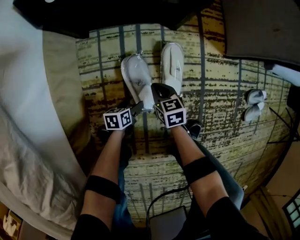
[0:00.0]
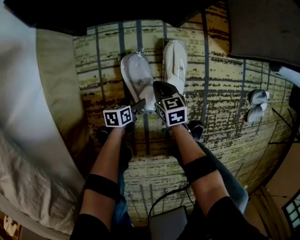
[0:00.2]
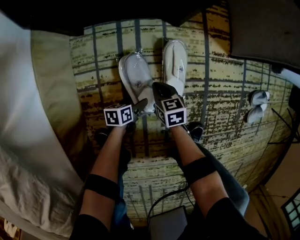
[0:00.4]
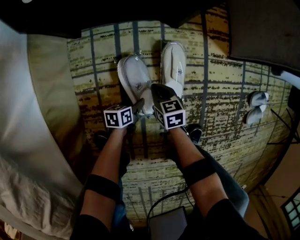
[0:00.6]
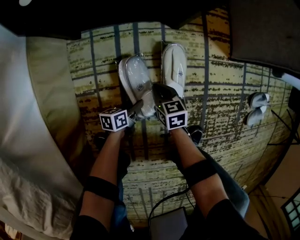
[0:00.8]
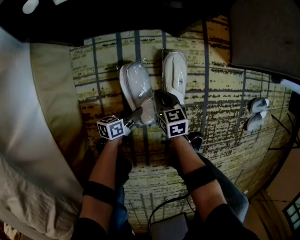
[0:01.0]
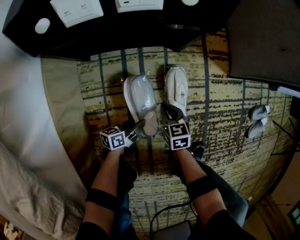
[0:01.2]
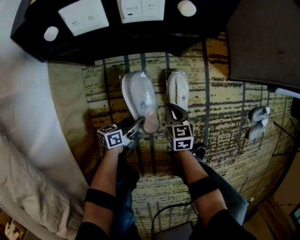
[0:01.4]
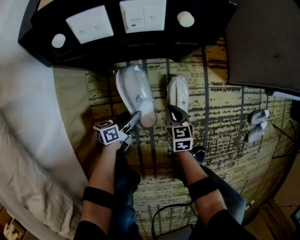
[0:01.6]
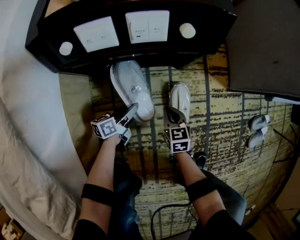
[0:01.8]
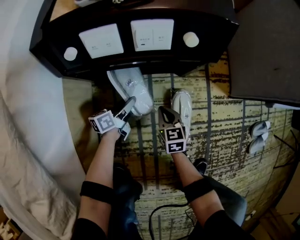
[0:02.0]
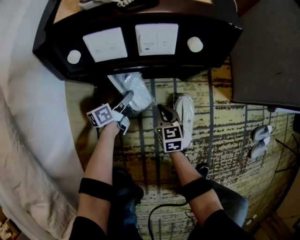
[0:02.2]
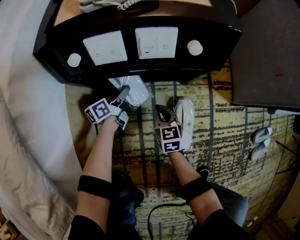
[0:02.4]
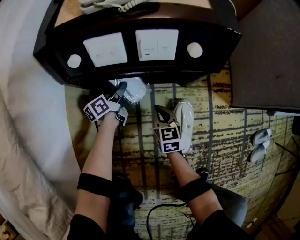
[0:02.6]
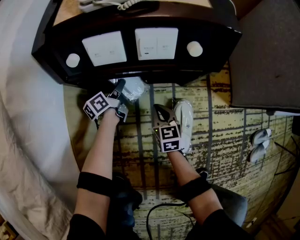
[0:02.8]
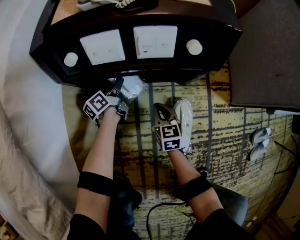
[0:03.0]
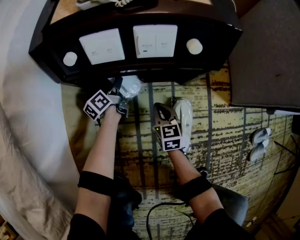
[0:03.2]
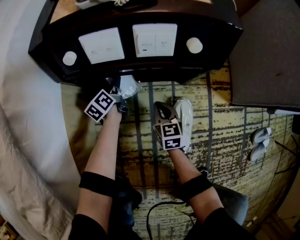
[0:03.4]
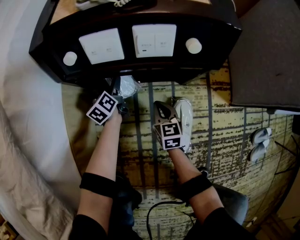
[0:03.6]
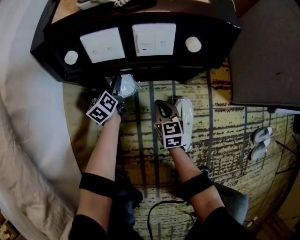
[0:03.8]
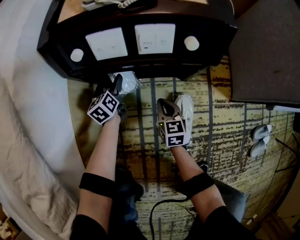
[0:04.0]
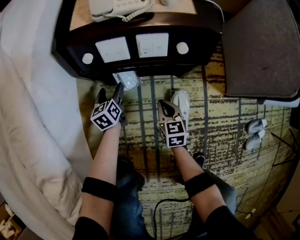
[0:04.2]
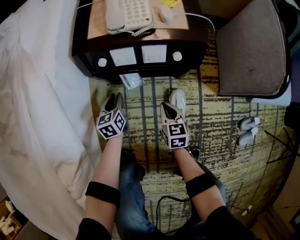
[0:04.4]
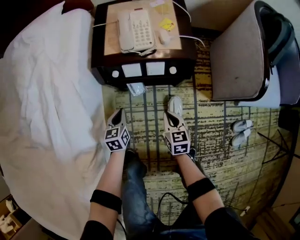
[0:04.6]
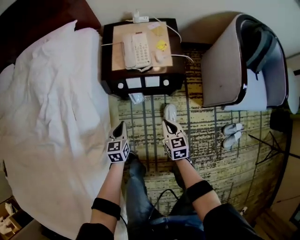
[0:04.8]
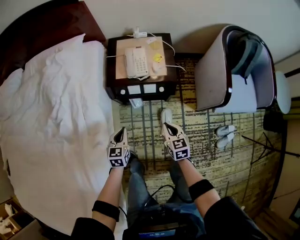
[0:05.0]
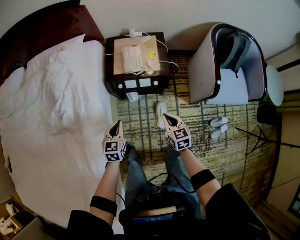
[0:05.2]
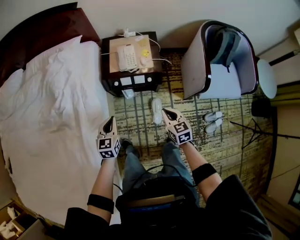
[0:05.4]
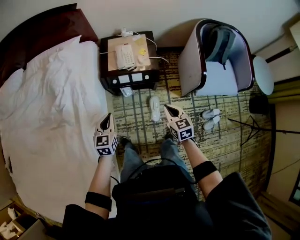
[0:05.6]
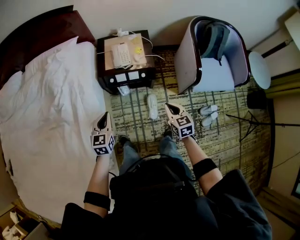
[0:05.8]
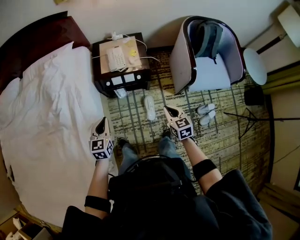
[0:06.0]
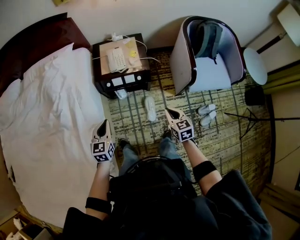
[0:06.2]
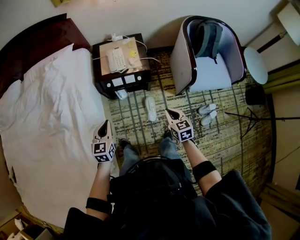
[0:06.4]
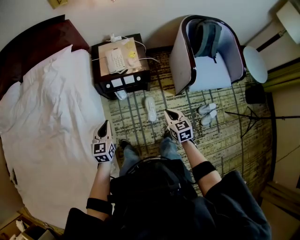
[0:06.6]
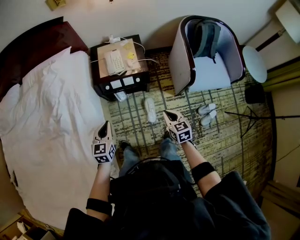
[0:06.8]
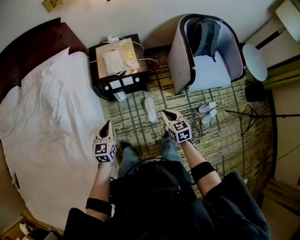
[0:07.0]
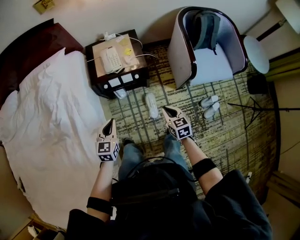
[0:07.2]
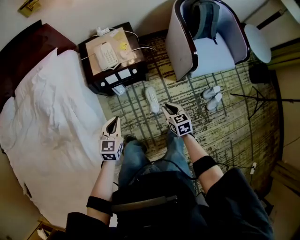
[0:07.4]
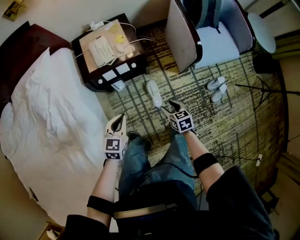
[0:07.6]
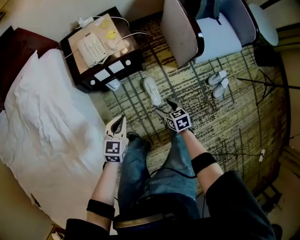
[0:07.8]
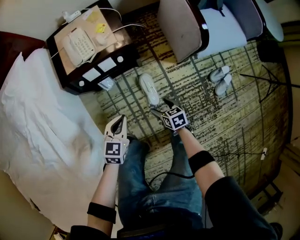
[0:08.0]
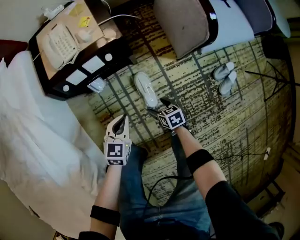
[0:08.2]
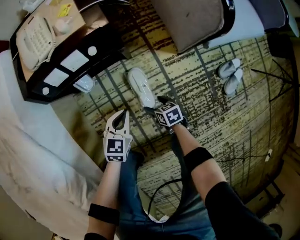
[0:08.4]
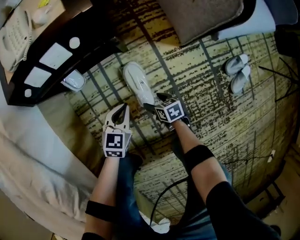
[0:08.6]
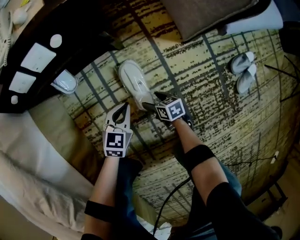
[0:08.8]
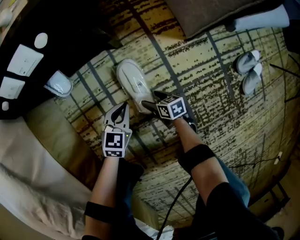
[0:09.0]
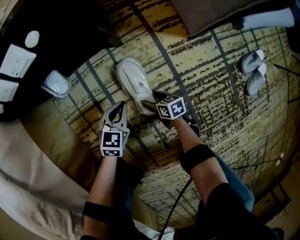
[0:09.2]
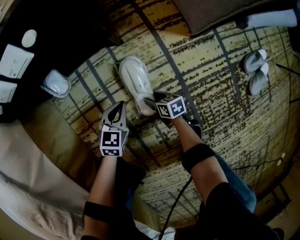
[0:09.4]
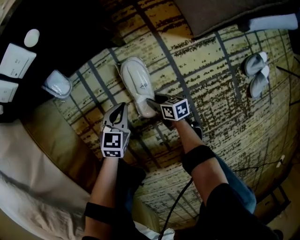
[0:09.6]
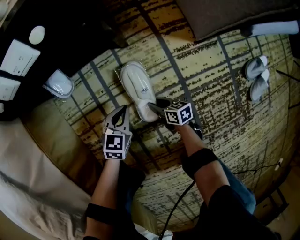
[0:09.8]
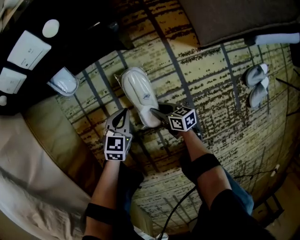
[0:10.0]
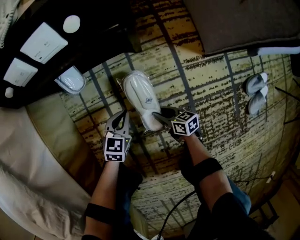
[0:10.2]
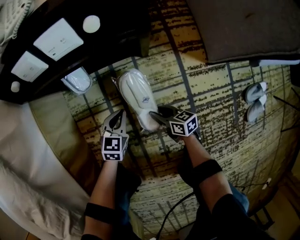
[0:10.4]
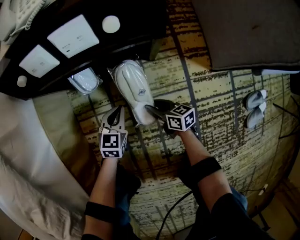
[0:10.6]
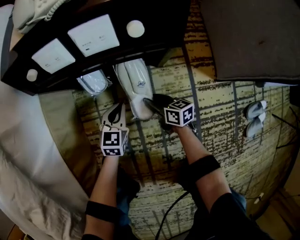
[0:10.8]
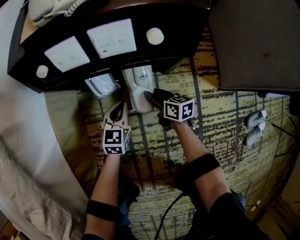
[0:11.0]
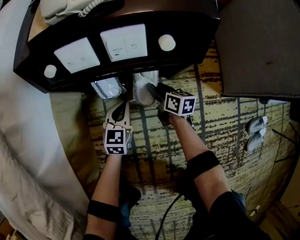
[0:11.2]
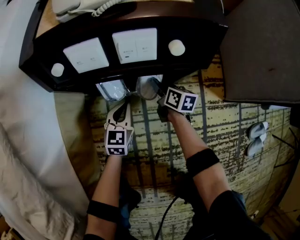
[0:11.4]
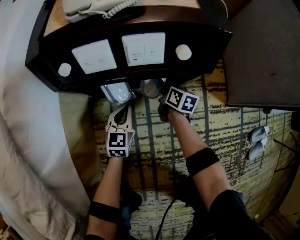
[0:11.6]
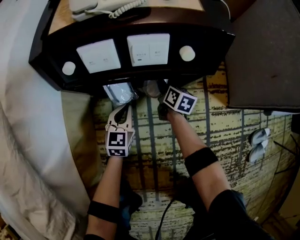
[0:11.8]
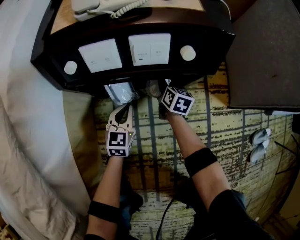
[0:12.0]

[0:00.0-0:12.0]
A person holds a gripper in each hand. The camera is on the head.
0:00.0 to 0:01.6: The left gripper heads forward and upward, covering about 15 cm, changes its angle by approximately 30 degrees, and closes; the right gripper heads forward, covering approximately 5 cm.
0:01.6 to 0:03.0: The right gripper travels forward and to the left by roughly 15 cm. Meanwhile the left gripper travels forward and to the left by some 25 cm, and turns by some 30 degrees.
0:03.0 to 0:04.4: The right gripper shifts roughly 20 cm upward. The left gripper heads upward and backward, covering approximately 20 cm, swivels approximately 50 degrees, and opens and closes again.
0:04.4 to 0:06.0: The two grippers go some 50 cm upward. The left gripper rotates about 20 degrees.
0:06.0 to 0:07.6: The left gripper travels downward and to the right by about 15 cm, and changes its angle by roughly 30 degrees. Meanwhile the right gripper moves downward, about 20 cm, and opens up.
0:07.6 to 0:09.0: Both grippers move downward, about 60 cm. The right gripper rotates some 30 degrees.
0:09.0 to 0:10.4: The right gripper moves to the left and upward, some 10 cm, and closes its fingers, while the left gripper goes roughly 10 cm to the left.
0:10.4 to 0:12.0: The left gripper moves forward and to the left, approximately 15 cm, and rotates roughly 20 degrees, while the right gripper moves forward, about 30 cm, and changes its angle by some 30 degrees.

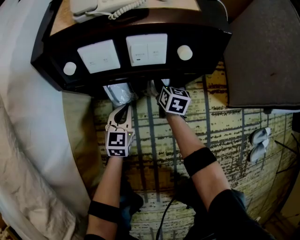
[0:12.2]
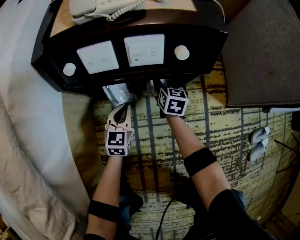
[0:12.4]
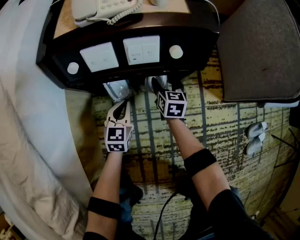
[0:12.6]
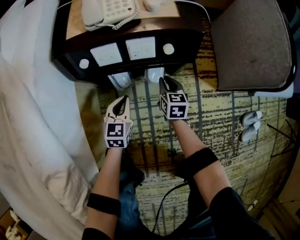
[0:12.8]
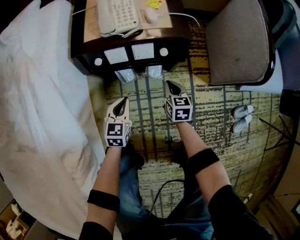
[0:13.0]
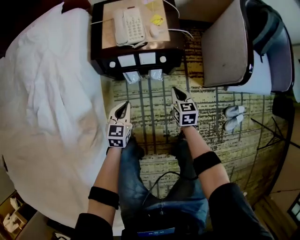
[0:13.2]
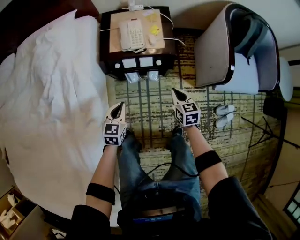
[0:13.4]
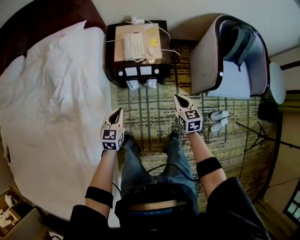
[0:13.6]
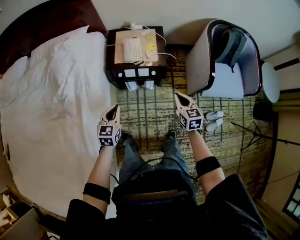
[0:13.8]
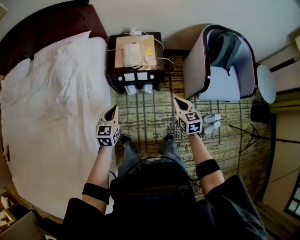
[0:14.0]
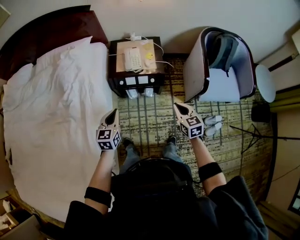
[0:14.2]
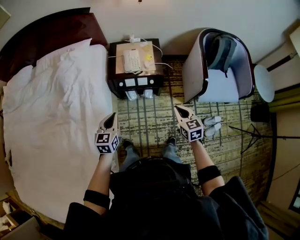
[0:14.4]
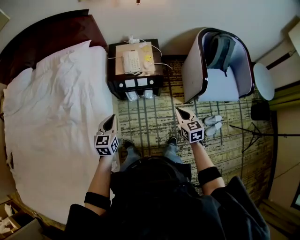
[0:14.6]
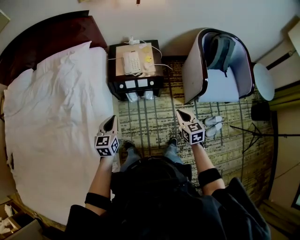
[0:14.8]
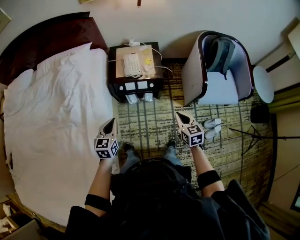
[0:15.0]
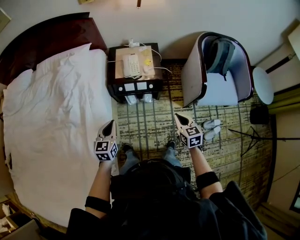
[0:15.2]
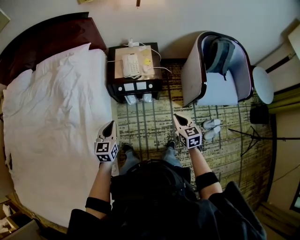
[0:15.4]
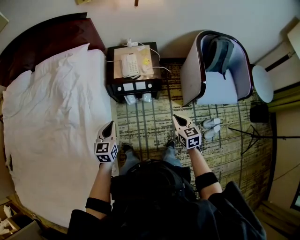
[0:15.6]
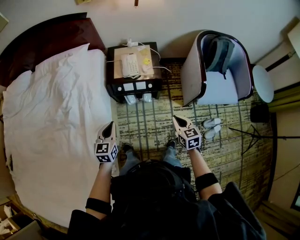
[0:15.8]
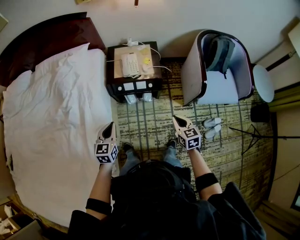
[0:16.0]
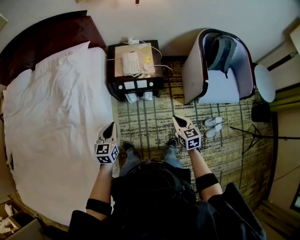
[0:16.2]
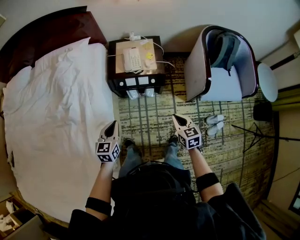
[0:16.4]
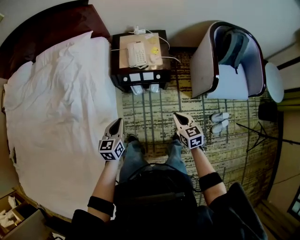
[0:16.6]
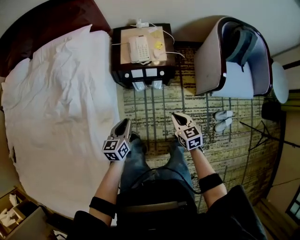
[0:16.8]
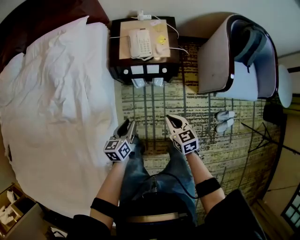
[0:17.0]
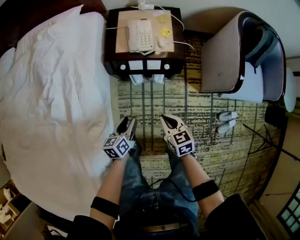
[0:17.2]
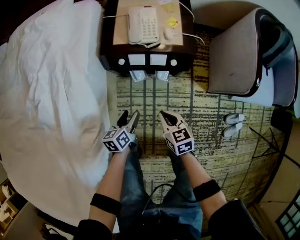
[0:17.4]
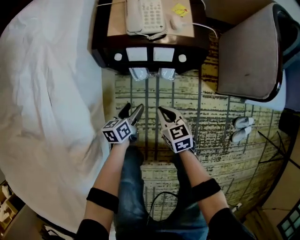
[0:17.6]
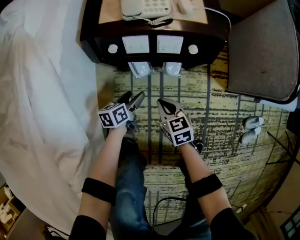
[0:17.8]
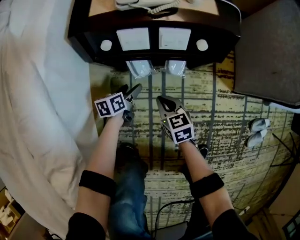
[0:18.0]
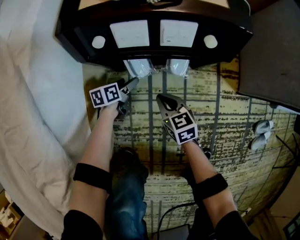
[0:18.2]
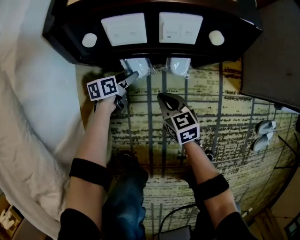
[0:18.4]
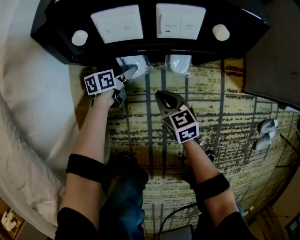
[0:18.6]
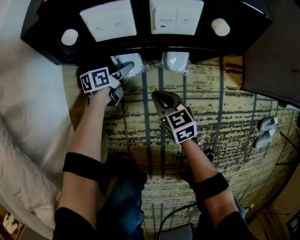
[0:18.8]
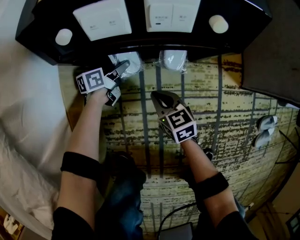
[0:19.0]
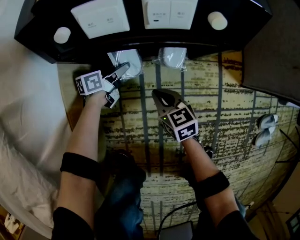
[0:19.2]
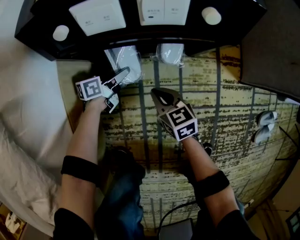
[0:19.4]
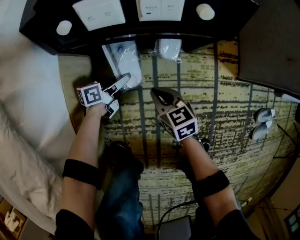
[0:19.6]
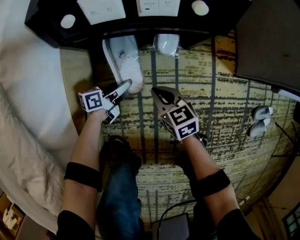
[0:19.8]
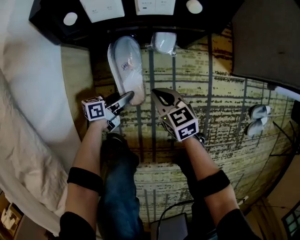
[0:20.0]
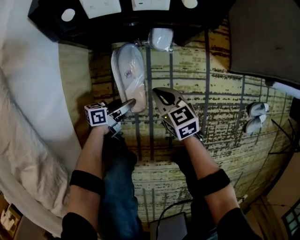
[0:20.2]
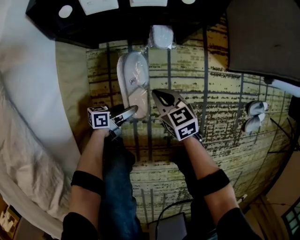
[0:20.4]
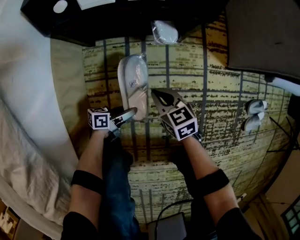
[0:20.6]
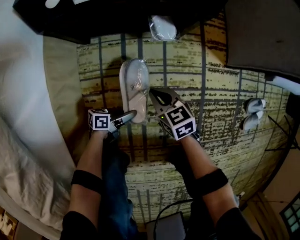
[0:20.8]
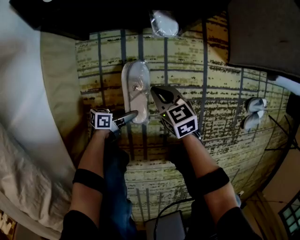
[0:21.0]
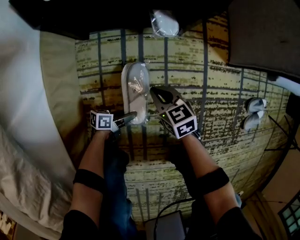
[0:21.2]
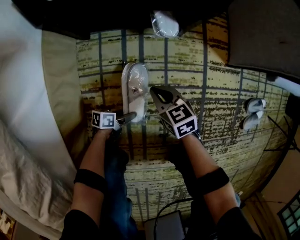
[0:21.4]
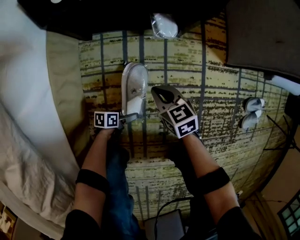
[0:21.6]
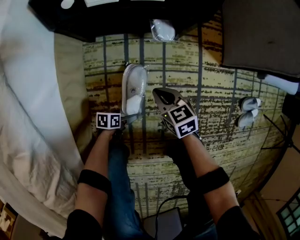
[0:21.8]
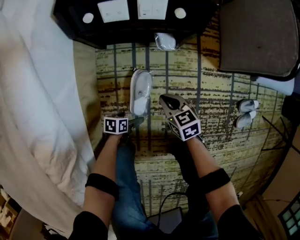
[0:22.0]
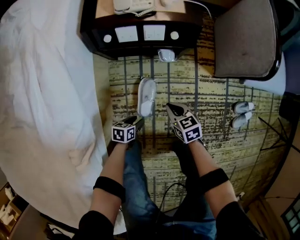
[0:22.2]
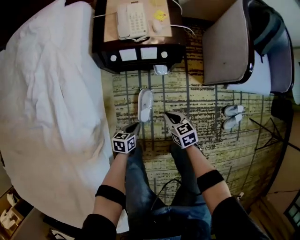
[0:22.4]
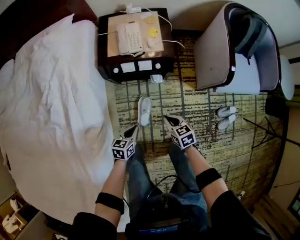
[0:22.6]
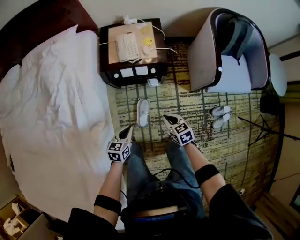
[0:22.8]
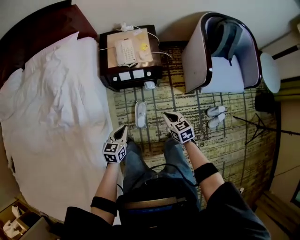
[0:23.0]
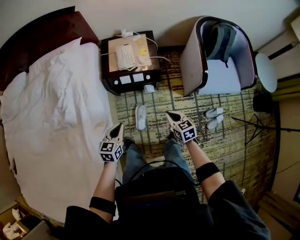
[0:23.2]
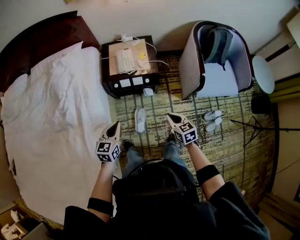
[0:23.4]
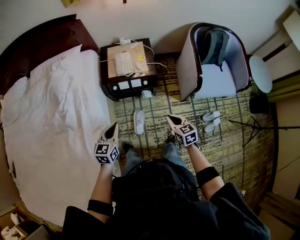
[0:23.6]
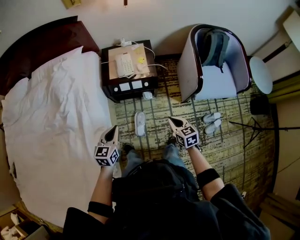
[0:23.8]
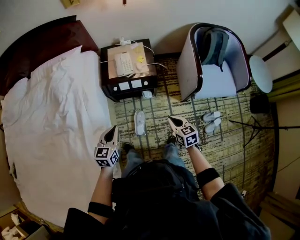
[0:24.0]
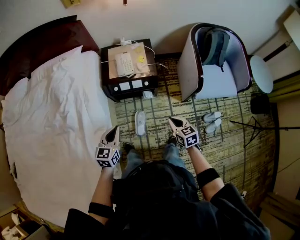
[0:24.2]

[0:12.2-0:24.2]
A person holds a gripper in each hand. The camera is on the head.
0:12.2 to 0:13.8: Both grippers travel together upward, some 70 cm. The right gripper rotates approximately 20 degrees, and closes up.
0:13.8 to 0:15.2: The left gripper is displaced upward by some 5 cm. Meanwhile the right gripper shifts roughly 10 cm backward.
0:15.2 to 0:16.6: The right gripper ends up approximately 5 cm from where it was.
0:16.6 to 0:18.2: Both grippers travel together downward, some 70 cm. The left gripper rotates about 40 degrees, and opens its fingers.
0:18.2 to 0:19.8: The right gripper moves approximately 5 cm; the left gripper moves backward and to the right, some 10 cm, changes its angle by roughly 30 degrees, and closes.
0:19.8 to 0:21.2: The left gripper changes place by about 25 cm, and swivels about 20 degrees. The right gripper shifts by about 10 cm.
0:21.2 to 0:22.6: The two grippers go about 50 cm upward. The left gripper swivels approximately 50 degrees, and opens, then closes once more.
0:22.6 to 0:24.2: Both grippers travel together upward, some 25 cm. The left gripper swivels approximately 30 degrees.
